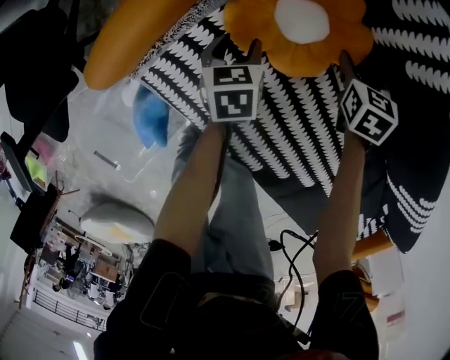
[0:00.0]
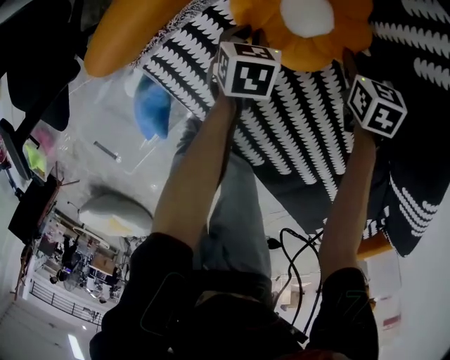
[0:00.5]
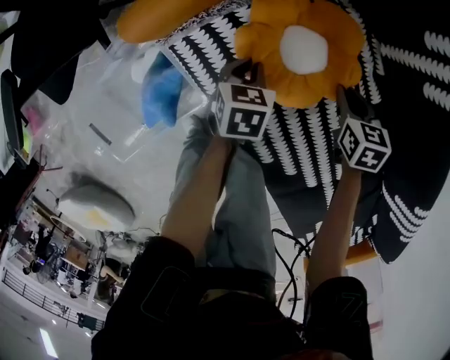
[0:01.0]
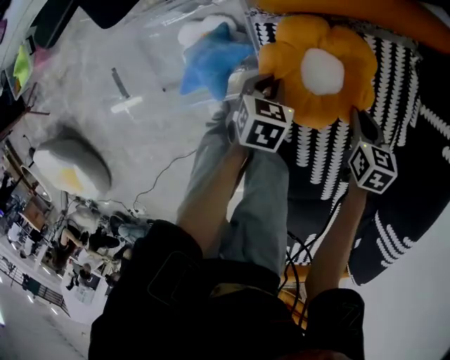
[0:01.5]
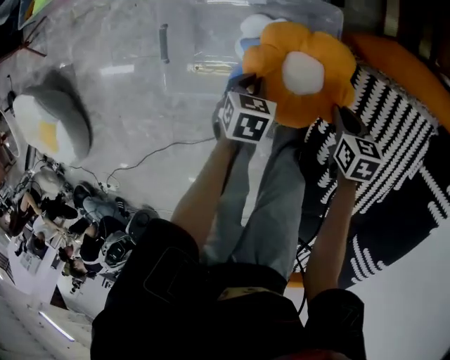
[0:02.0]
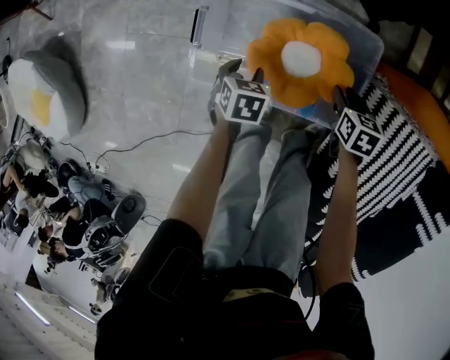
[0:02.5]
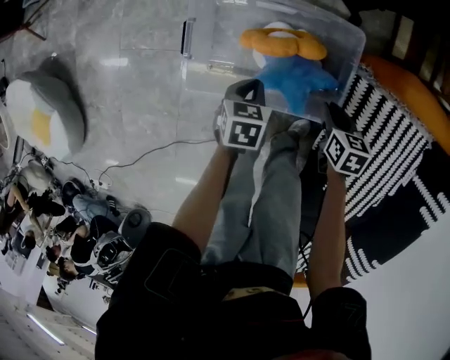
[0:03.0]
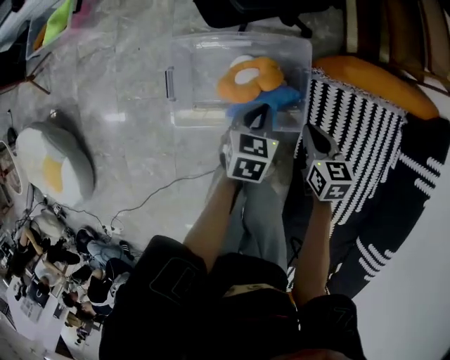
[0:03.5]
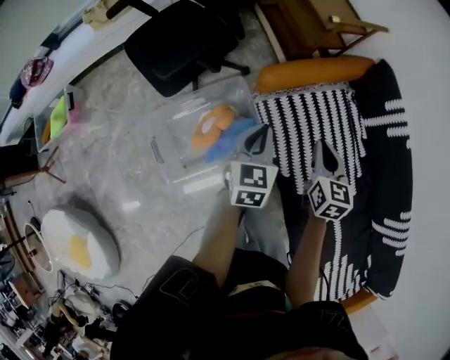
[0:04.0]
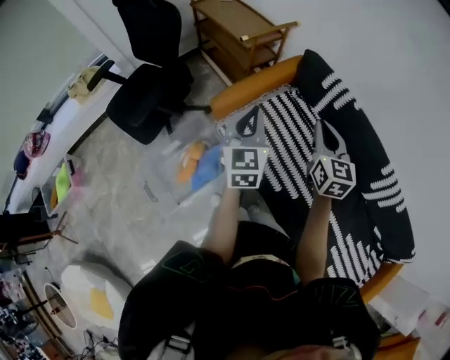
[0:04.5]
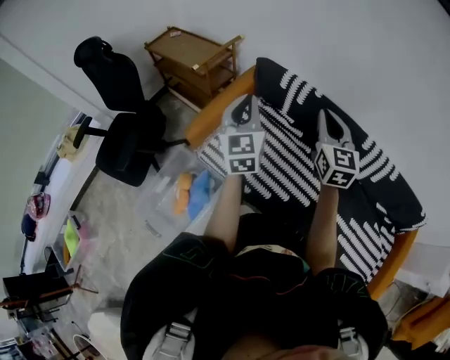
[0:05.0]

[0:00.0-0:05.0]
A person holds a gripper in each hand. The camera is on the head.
0:00.0 to 0:02.5: The pair of grippers is taken approximately 70 cm. The left gripper turns by some 40 degrees, and closes, then opens again; the right gripper swivels about 60 degrees.
0:02.5 to 0:05.0: The pair of grippers is taken roughly 60 cm. The right gripper angles its fingers upward, by about 50 degrees, and closes up. The left gripper tips its fingers upward by about 70 degrees, and closes up.

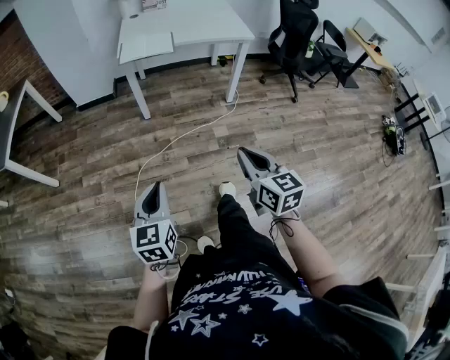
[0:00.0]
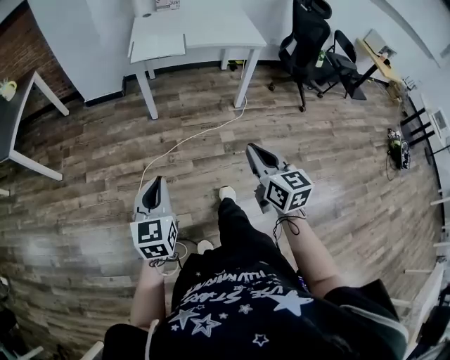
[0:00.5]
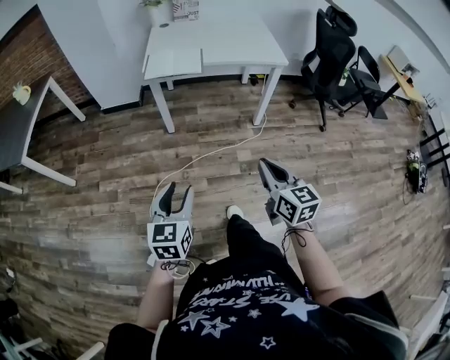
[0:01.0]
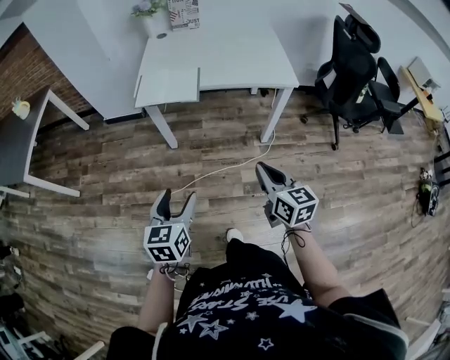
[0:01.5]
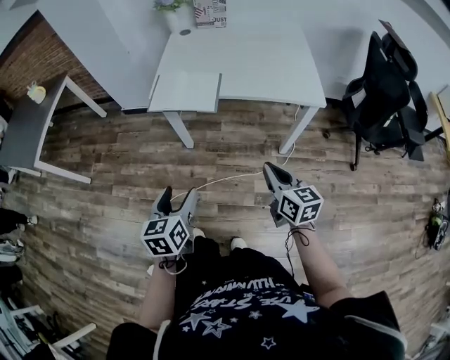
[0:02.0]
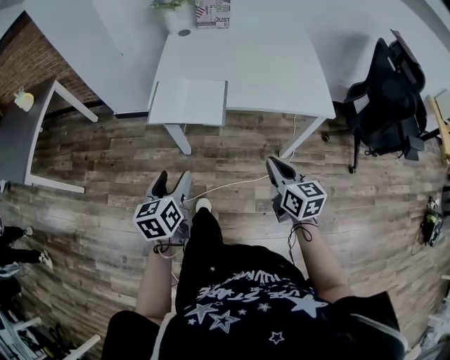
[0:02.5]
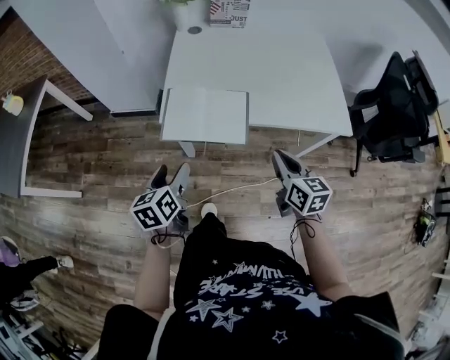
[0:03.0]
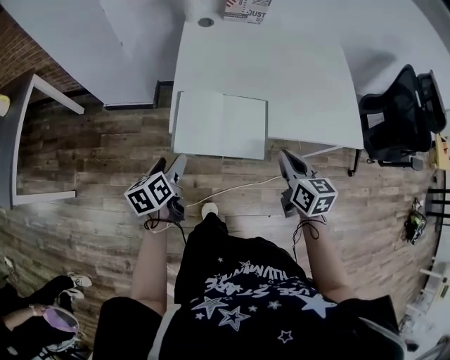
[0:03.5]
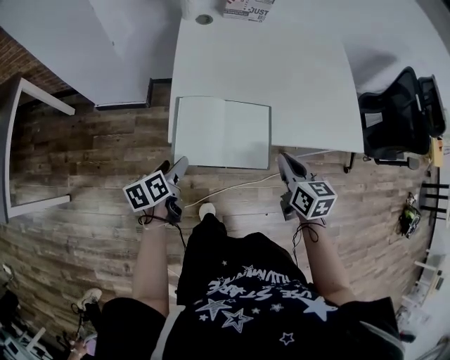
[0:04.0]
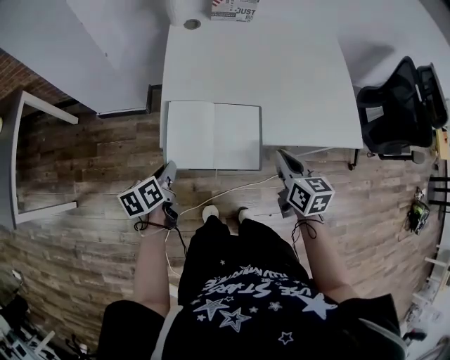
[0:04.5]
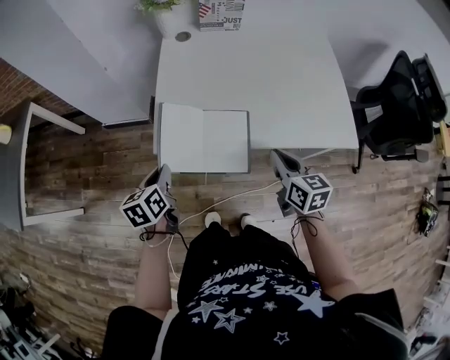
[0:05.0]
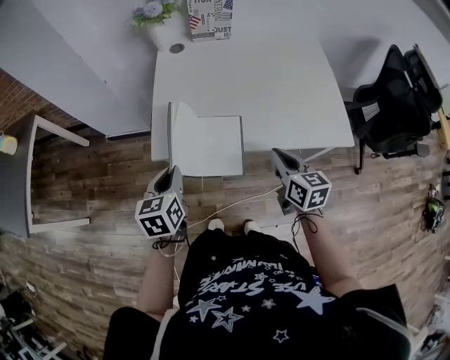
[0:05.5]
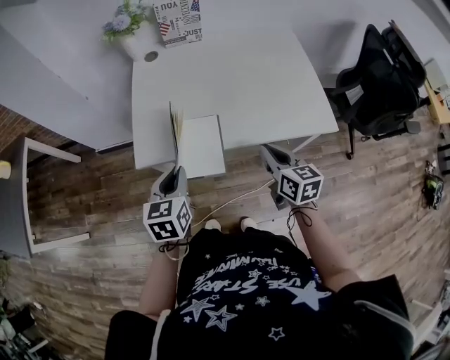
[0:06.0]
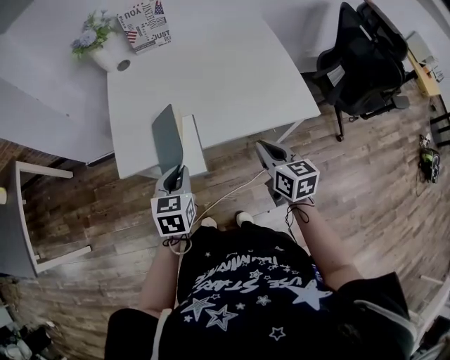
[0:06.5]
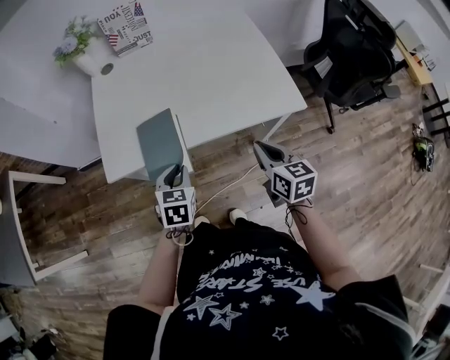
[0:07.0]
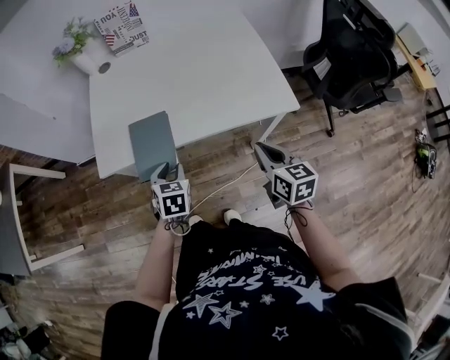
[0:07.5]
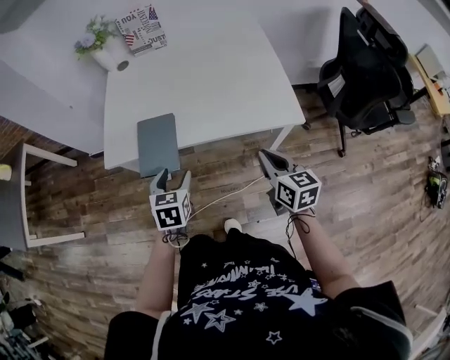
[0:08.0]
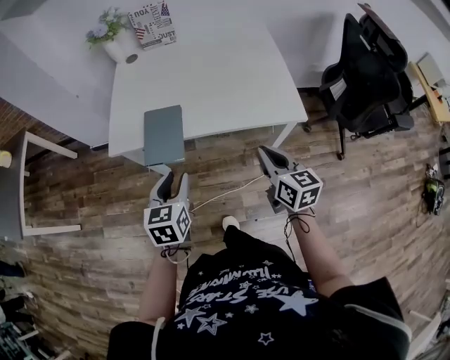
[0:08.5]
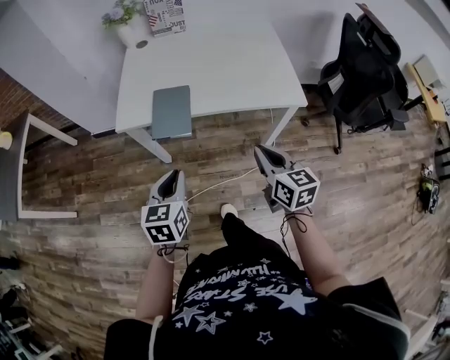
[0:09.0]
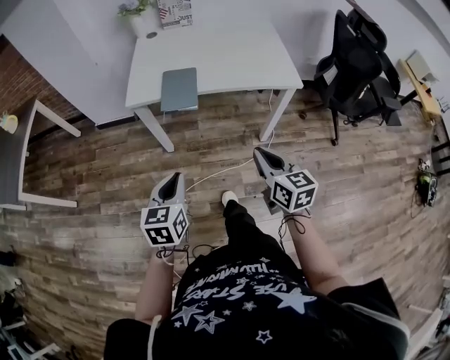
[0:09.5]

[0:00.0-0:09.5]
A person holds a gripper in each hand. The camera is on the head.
0:00.0 to 0:02.0: The grippers both shift forward by approximately 40 cm. The left gripper rotates approximately 20 degrees, and opens.
0:02.0 to 0:04.0: The two grippers go some 40 cm forward and to the left. The left gripper rotates some 30 degrees.
0:04.0 to 0:05.5: The right gripper heads to the right, covering approximately 10 cm. The left gripper shifts about 15 cm upward and to the right, turns by about 30 degrees, and closes.
0:05.5 to 0:07.5: The left gripper goes some 20 cm to the right and downward, and turns by roughly 30 degrees, while the right gripper shifts some 20 cm to the right and backward.
0:07.5 to 0:09.5: The left gripper goes approximately 30 cm backward, changes its angle by roughly 20 degrees, and opens, then closes again; the right gripper moves backward and to the left, roughly 25 cm.

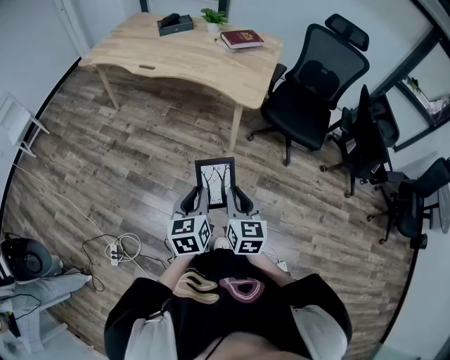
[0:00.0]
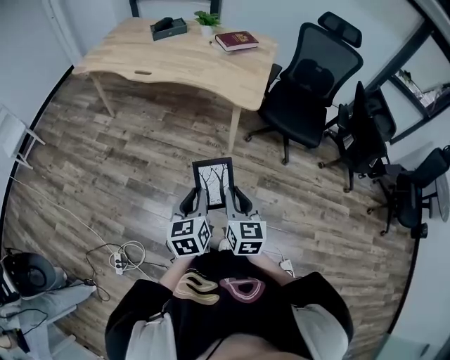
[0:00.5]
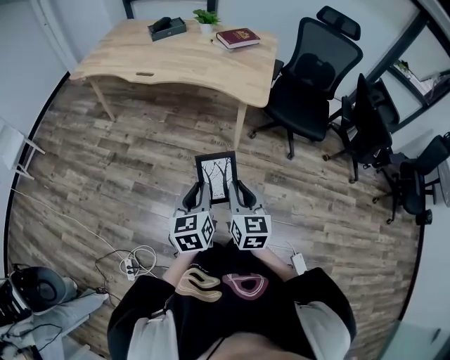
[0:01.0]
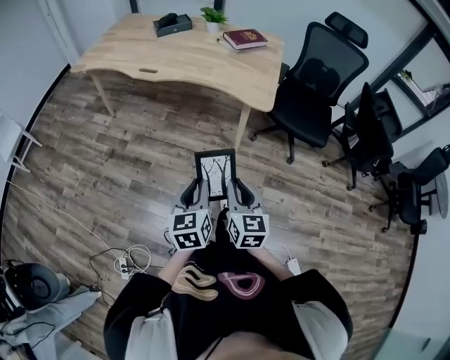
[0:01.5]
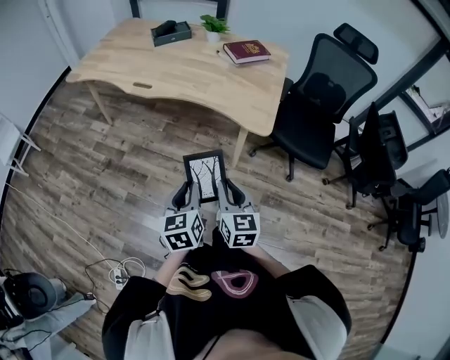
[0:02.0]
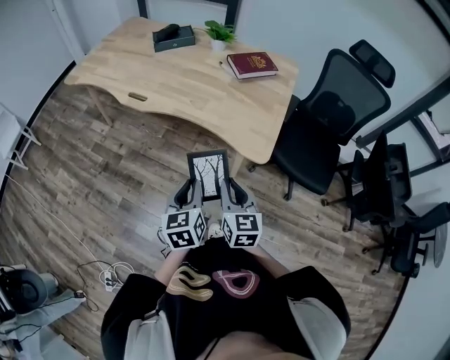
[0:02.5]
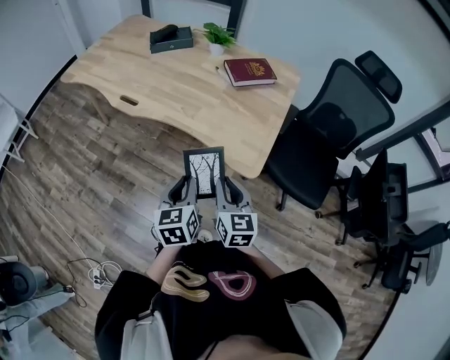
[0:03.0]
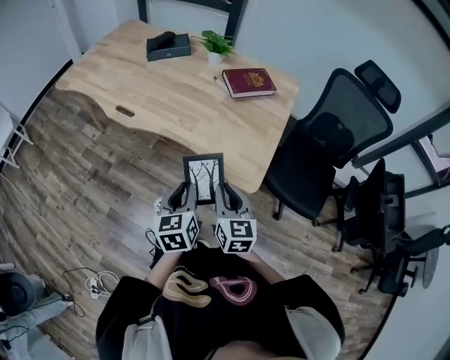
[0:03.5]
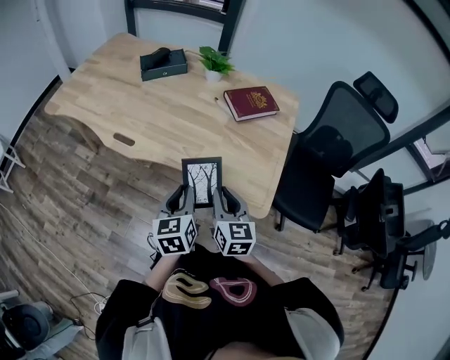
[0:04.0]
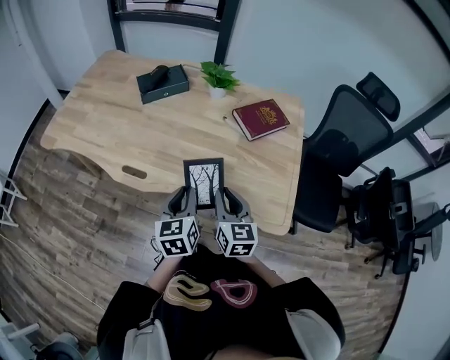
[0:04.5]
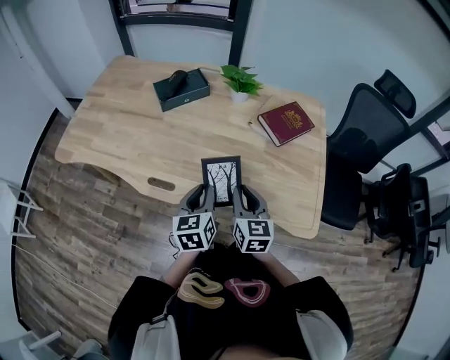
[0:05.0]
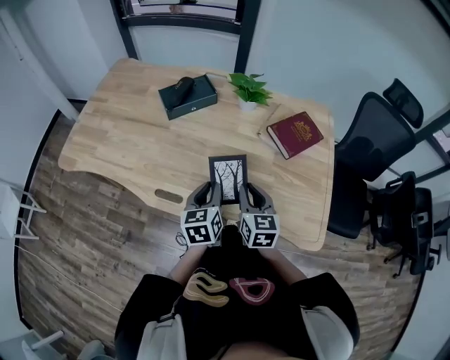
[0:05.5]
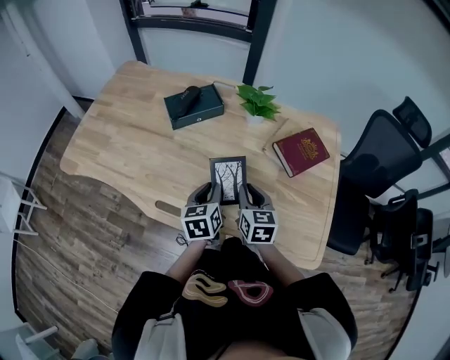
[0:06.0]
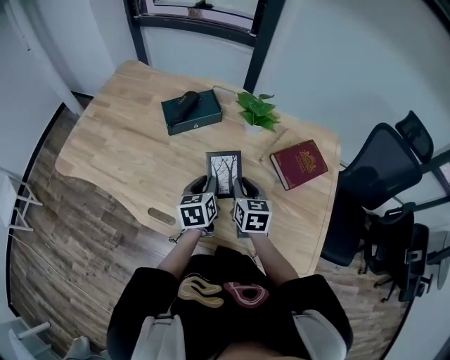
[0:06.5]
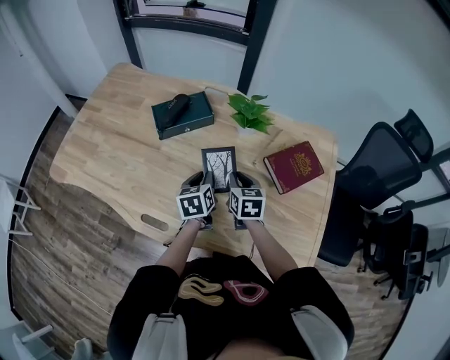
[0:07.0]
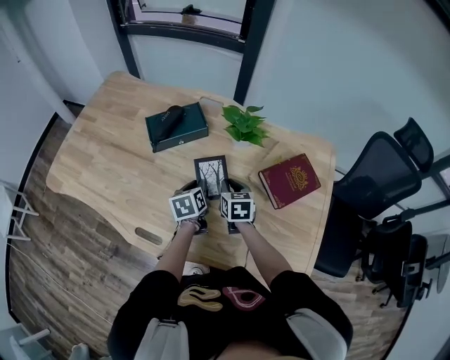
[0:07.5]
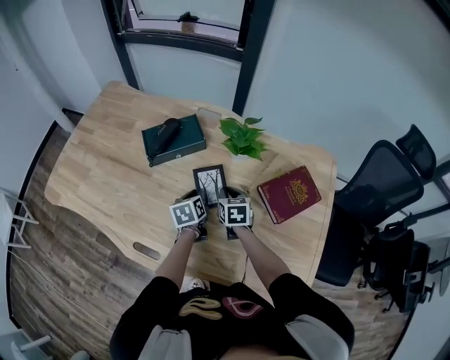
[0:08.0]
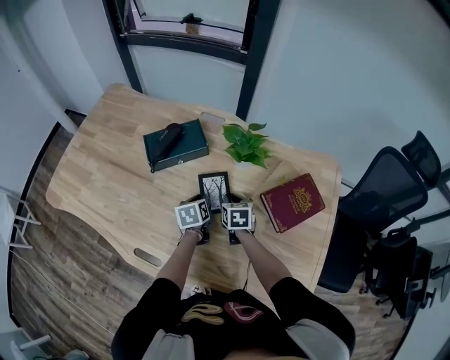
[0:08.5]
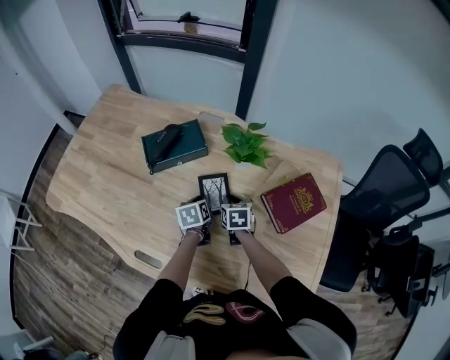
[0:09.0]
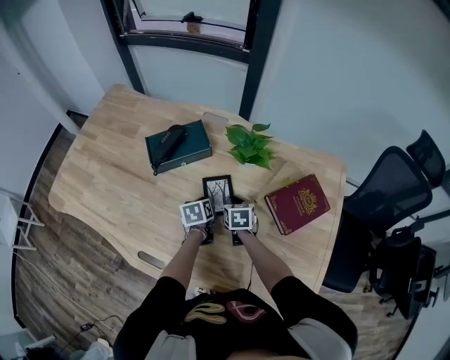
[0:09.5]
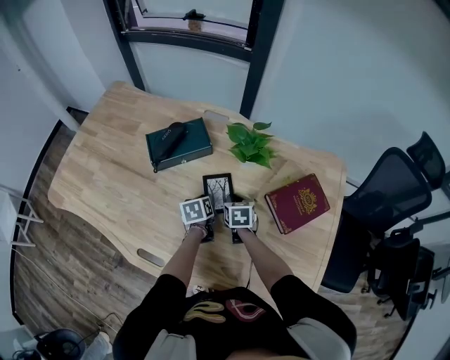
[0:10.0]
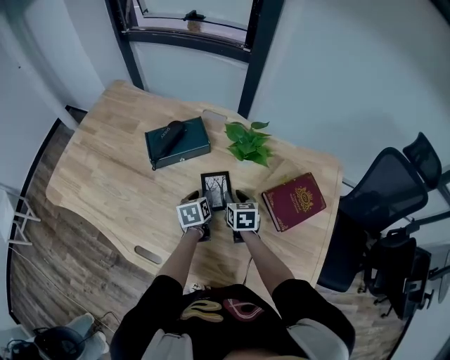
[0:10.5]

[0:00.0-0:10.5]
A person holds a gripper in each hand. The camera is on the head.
0:00.0 to 0:02.0: The two grippers go approximately 20 cm forward and to the left.
0:02.0 to 0:04.0: The grippers both shift forward by some 35 cm.
0:04.0 to 0:06.5: The left gripper travels forward by about 35 cm. The right gripper travels forward and to the left by some 40 cm.
0:06.5 to 0:08.5: Both grippers move forward and downward, roughly 20 cm.
0:08.5 to 0:10.5: The grippers move only a little.

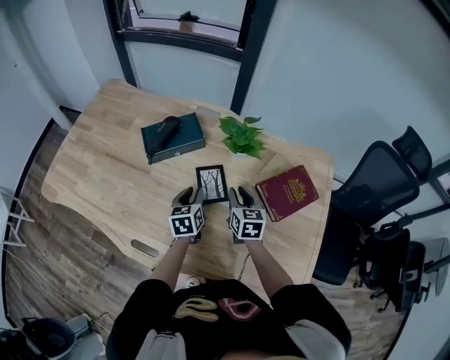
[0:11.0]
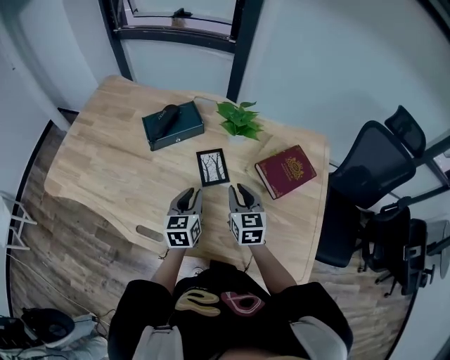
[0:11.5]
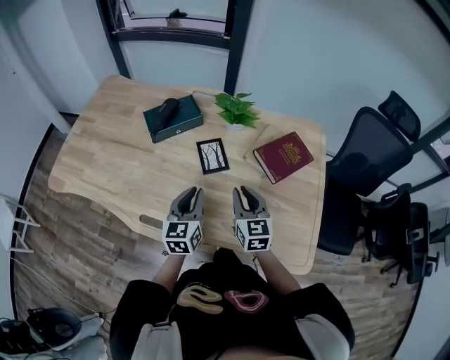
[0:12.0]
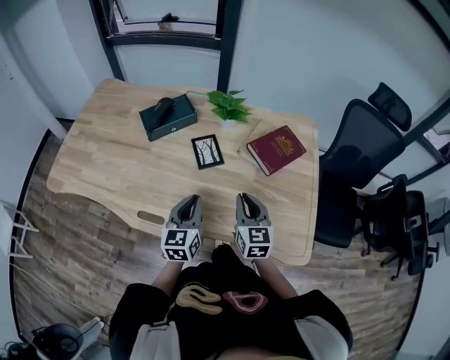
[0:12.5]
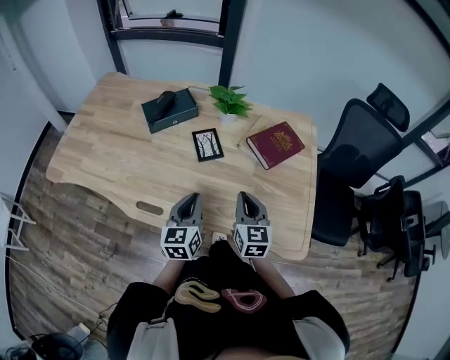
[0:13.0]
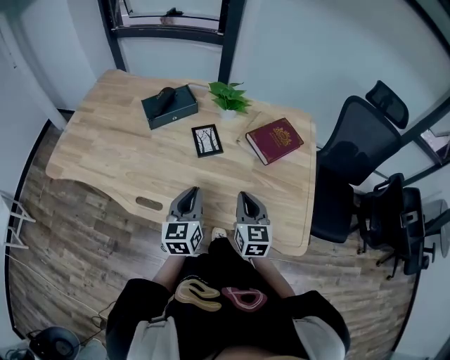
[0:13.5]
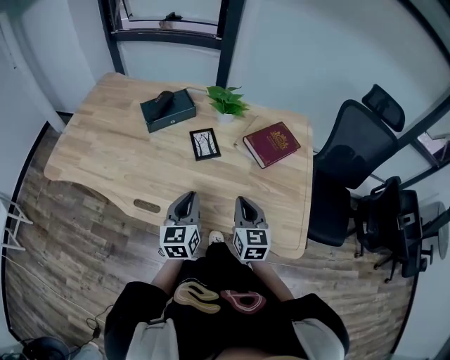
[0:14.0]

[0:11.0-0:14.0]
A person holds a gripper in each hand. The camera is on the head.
0:11.0 to 0:12.5: The right gripper heads backward, covering about 20 cm. Meanwhile the left gripper shifts about 20 cm backward and upward, and turns by roughly 20 degrees.
0:12.5 to 0:14.0: The right gripper is displaced backward by roughly 5 cm.
